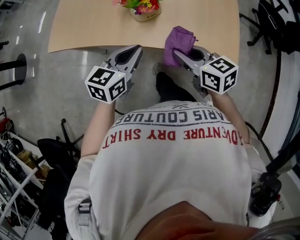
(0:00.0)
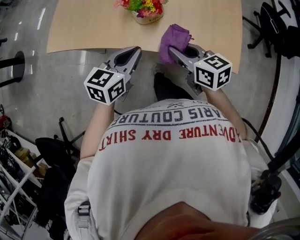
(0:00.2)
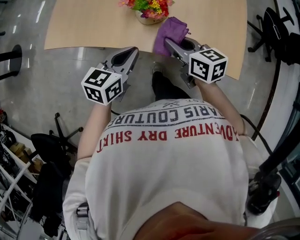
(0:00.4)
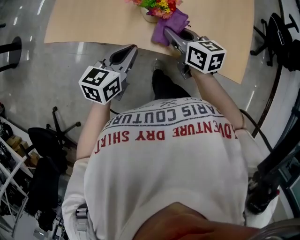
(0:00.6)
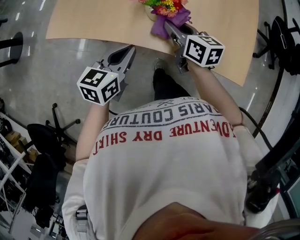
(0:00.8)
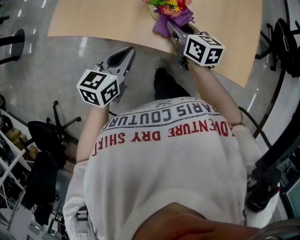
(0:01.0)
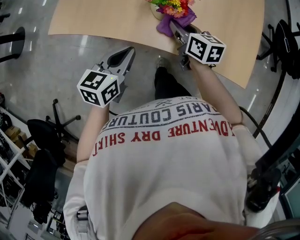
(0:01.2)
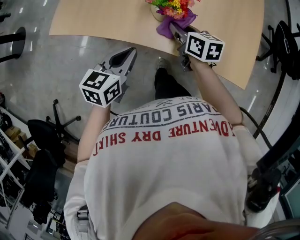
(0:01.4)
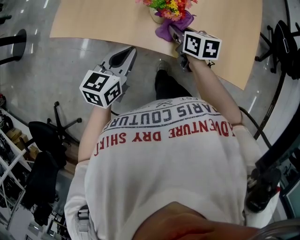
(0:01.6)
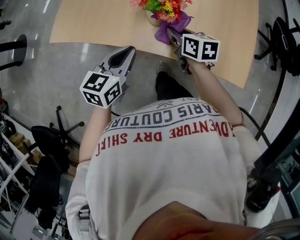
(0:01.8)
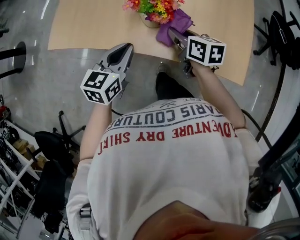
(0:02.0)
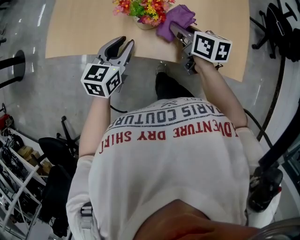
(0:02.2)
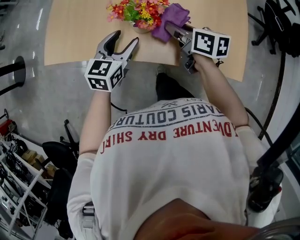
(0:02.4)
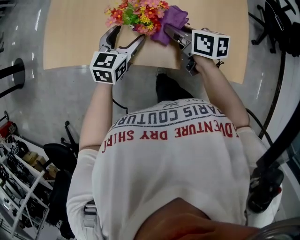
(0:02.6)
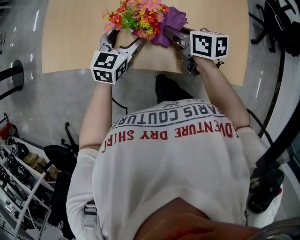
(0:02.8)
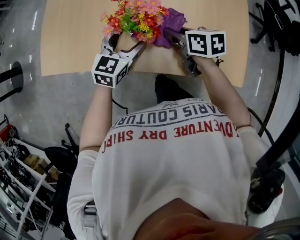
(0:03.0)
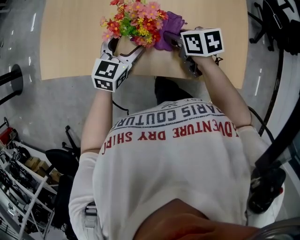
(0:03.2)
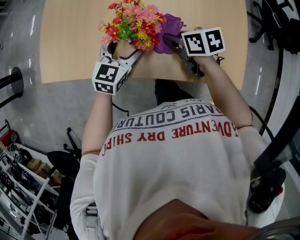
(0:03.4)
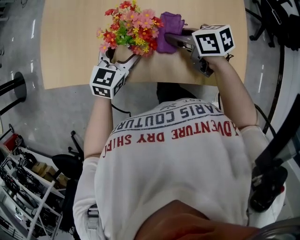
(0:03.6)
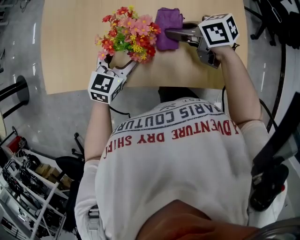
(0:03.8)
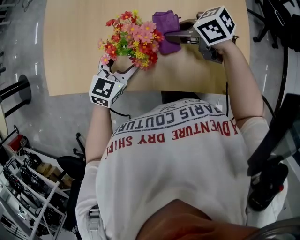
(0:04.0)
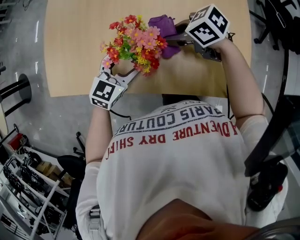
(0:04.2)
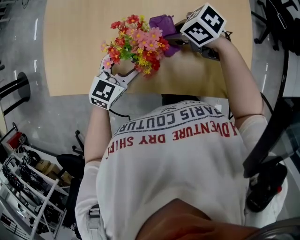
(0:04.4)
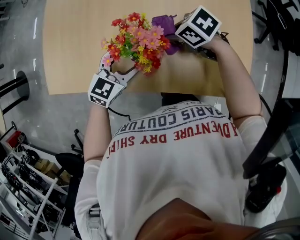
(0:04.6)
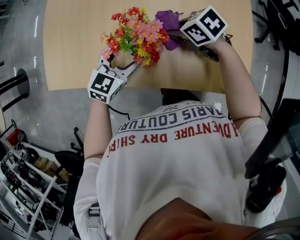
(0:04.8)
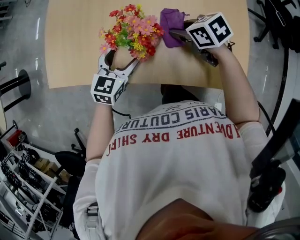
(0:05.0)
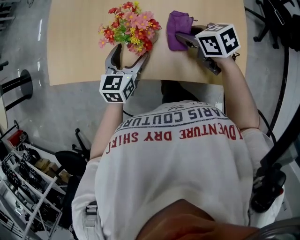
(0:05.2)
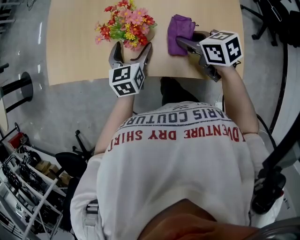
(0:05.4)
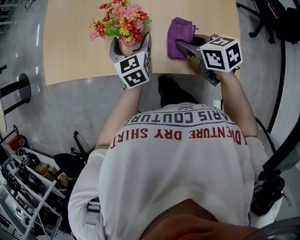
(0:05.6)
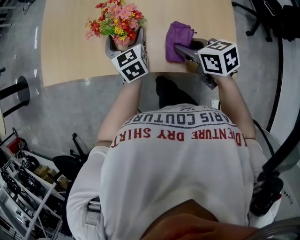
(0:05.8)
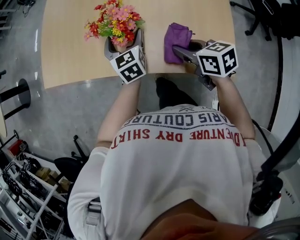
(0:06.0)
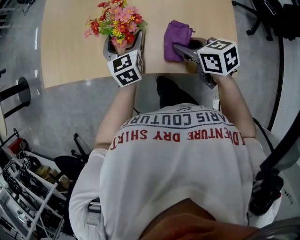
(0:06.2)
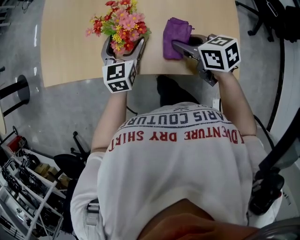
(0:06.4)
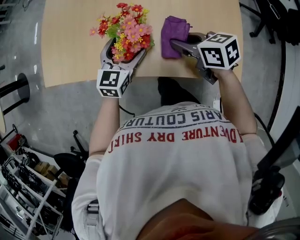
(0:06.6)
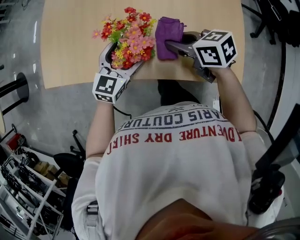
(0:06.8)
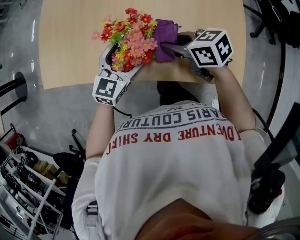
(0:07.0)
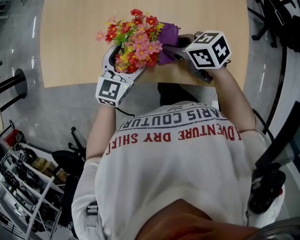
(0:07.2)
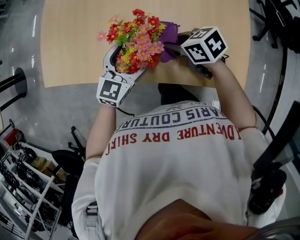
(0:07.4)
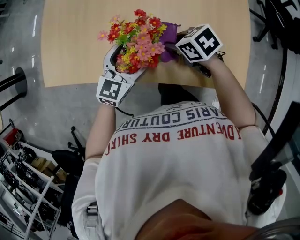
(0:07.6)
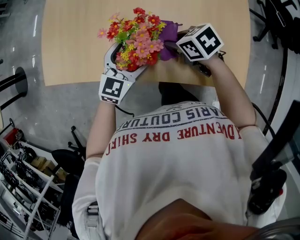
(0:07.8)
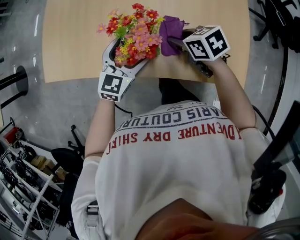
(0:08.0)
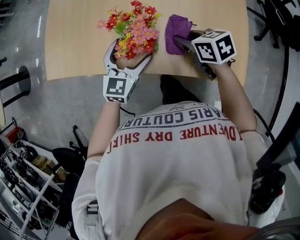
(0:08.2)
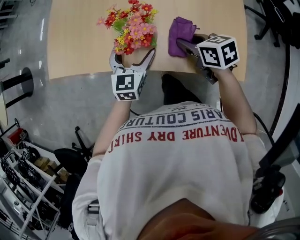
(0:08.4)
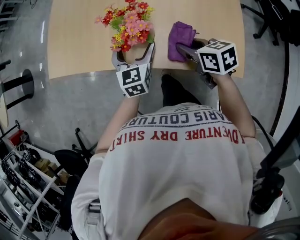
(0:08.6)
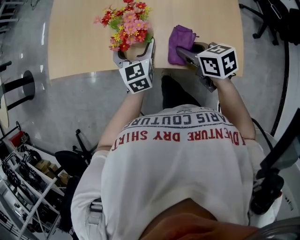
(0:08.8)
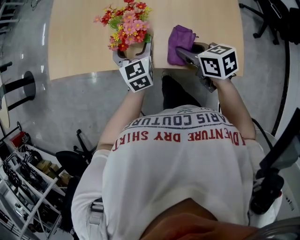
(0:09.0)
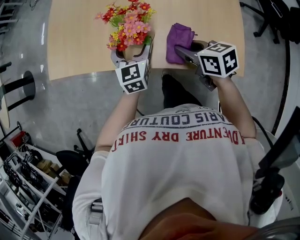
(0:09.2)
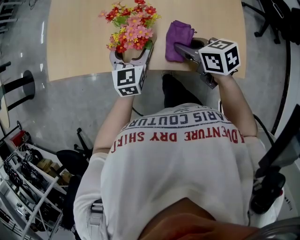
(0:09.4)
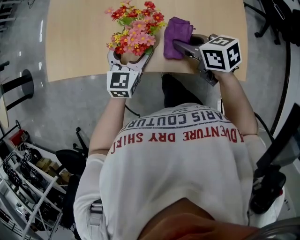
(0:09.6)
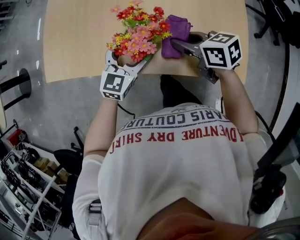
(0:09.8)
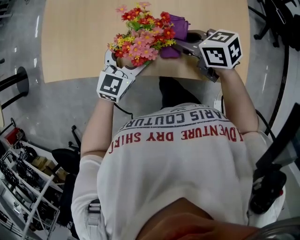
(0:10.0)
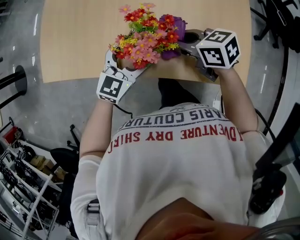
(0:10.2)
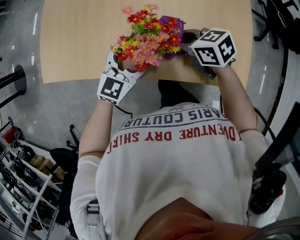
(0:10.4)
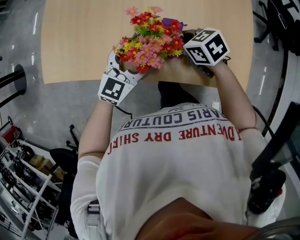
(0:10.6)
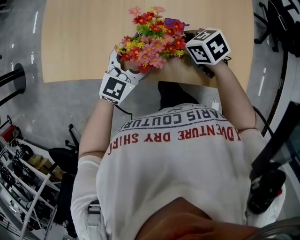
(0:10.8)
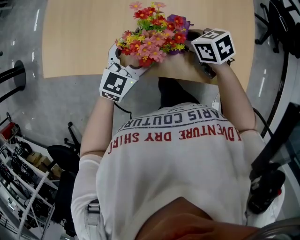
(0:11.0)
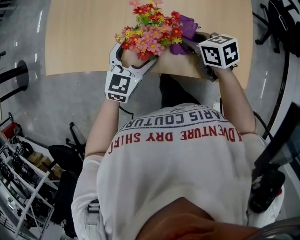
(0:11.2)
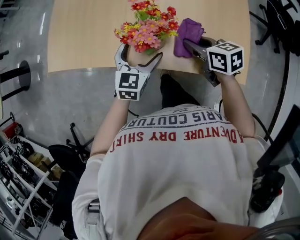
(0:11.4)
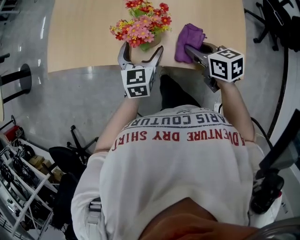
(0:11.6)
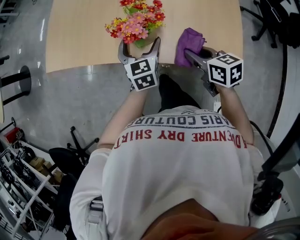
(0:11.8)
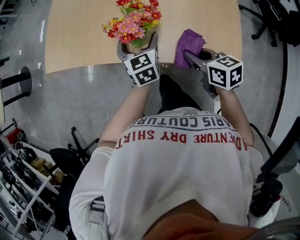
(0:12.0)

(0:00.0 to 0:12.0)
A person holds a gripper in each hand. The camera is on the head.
0:00.0 - 0:01.6: The right gripper travels forward and downward by roughly 20 cm, while the left gripper moves to the left, roughly 5 cm.
0:01.6 - 0:03.0: The left gripper moves forward and to the right, roughly 15 cm, and opens its fingers, while the right gripper heads to the right, covering roughly 5 cm.
0:03.0 - 0:04.4: The right gripper shifts by some 5 cm, and changes its angle by roughly 40 degrees.
0:04.4 - 0:06.0: The left gripper rotates roughly 50 degrees. Meanwhile the right gripper shifts by approximately 15 cm, and turns by roughly 30 degrees.
0:06.0 - 0:07.6: The left gripper changes its angle by some 40 degrees. The right gripper moves forward, downward and to the left, approximately 15 cm, and changes its angle by some 20 degrees.
0:07.6 - 0:09.0: The right gripper shifts about 10 cm backward, and rotates about 20 degrees, while the left gripper changes its angle by some 40 degrees.
0:09.0 - 0:10.4: The left gripper rotates roughly 40 degrees, while the right gripper moves forward, roughly 10 cm.
0:10.4 - 0:12.0: The right gripper travels backward and to the right by approximately 15 cm; the left gripper turns by roughly 50 degrees.

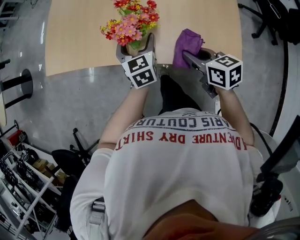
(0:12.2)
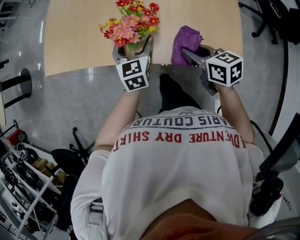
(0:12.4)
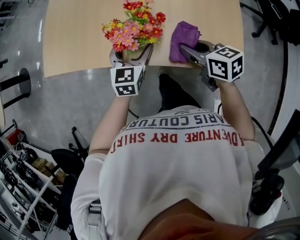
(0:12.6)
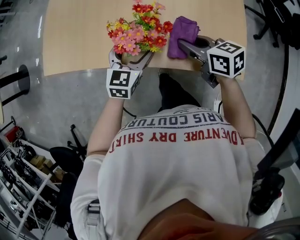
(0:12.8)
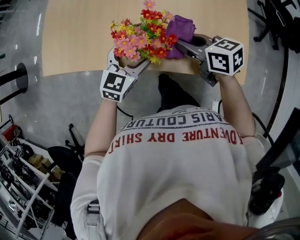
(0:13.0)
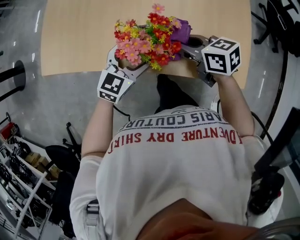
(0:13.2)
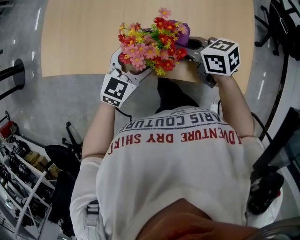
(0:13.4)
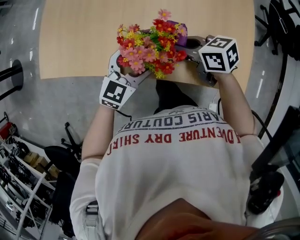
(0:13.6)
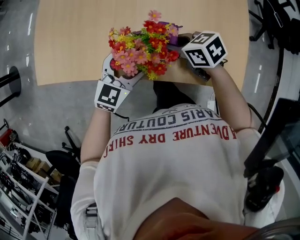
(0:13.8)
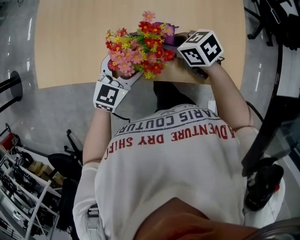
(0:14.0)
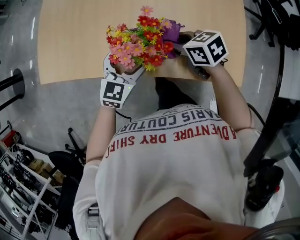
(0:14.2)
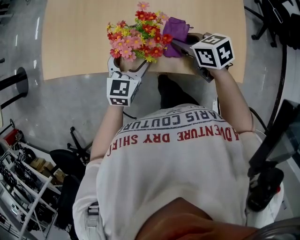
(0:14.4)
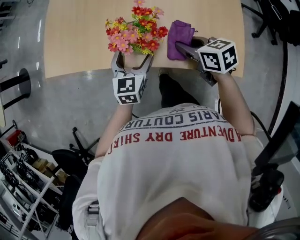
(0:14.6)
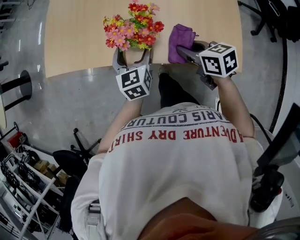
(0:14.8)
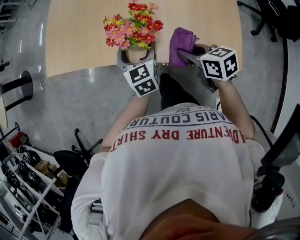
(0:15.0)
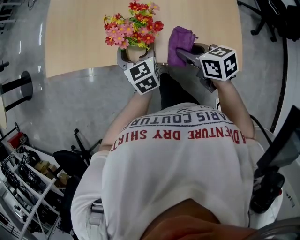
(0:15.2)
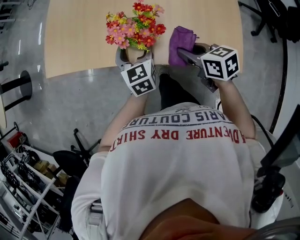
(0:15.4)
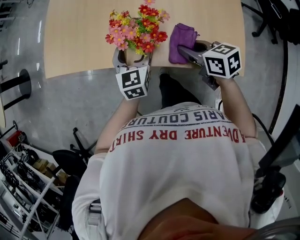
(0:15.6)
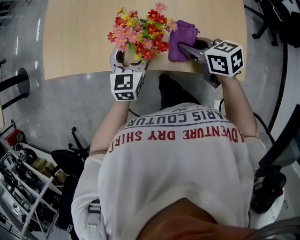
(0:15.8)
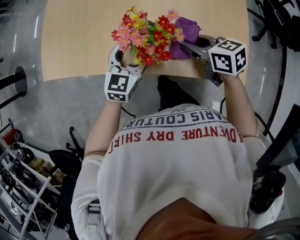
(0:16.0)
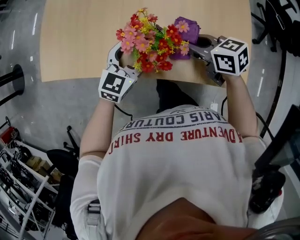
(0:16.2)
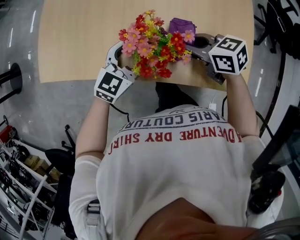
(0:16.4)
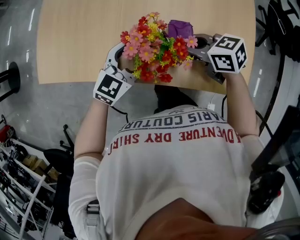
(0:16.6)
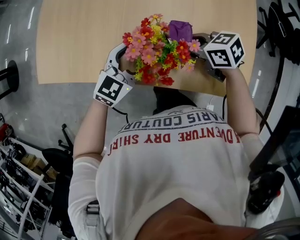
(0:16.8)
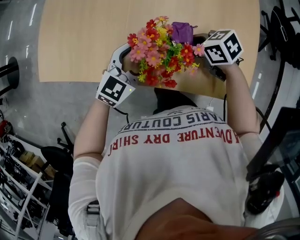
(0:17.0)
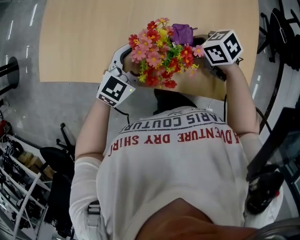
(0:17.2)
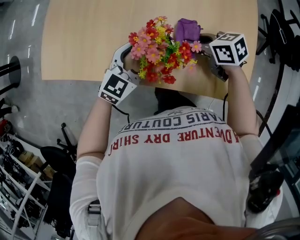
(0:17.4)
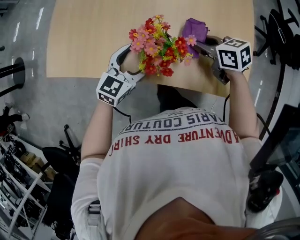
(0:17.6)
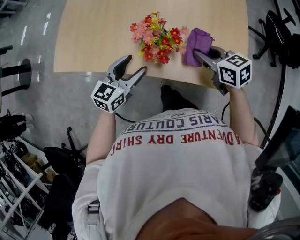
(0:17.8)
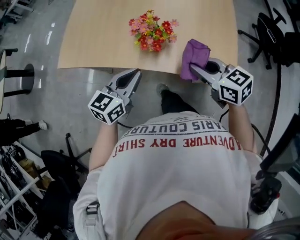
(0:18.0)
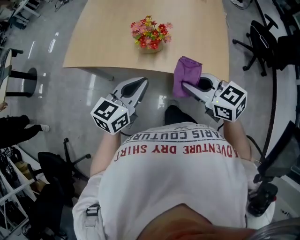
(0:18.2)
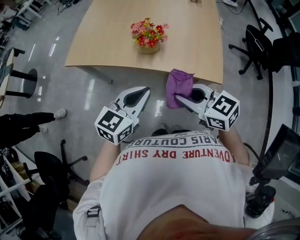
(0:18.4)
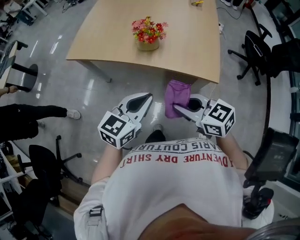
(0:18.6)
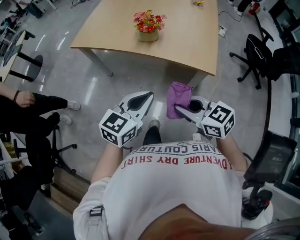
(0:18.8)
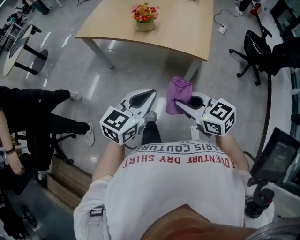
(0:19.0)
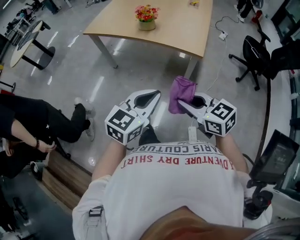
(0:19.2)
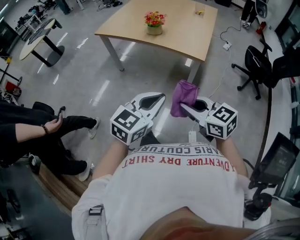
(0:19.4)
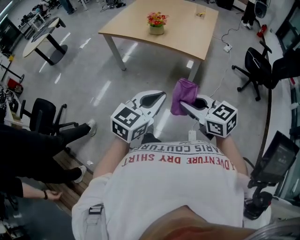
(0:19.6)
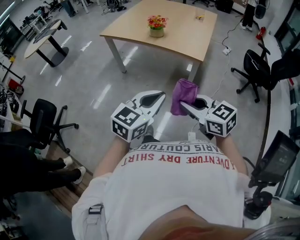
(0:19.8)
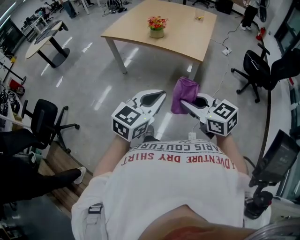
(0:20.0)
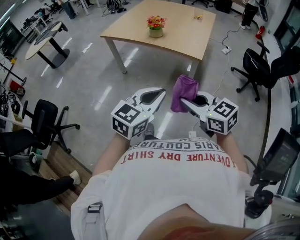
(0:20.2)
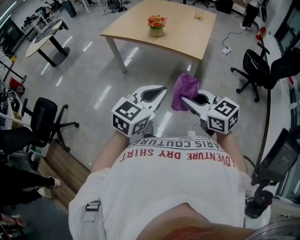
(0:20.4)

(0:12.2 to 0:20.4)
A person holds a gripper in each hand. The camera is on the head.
0:12.2 - 0:13.8: The left gripper rotates roughly 50 degrees; the right gripper travels forward and to the left by about 15 cm, and rotates roughly 20 degrees.
0:13.8 - 0:15.4: The right gripper is displaced backward by some 10 cm. The left gripper swivels some 40 degrees.
0:15.4 - 0:17.2: The right gripper shifts by approximately 15 cm, and rotates approximately 30 degrees; the left gripper changes its angle by approximately 50 degrees.
0:17.2 - 0:18.8: The two grippers travel together, about 50 cm. The right gripper changes its angle by about 30 degrees. Meanwhile the left gripper turns by some 20 degrees, and closes its fingers.
0:18.8 - 0:20.4: Both grippers move backward, about 35 cm.

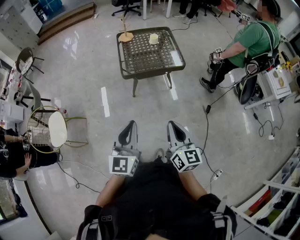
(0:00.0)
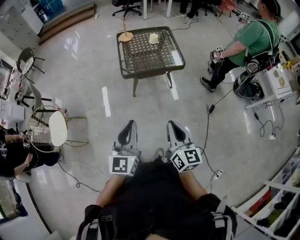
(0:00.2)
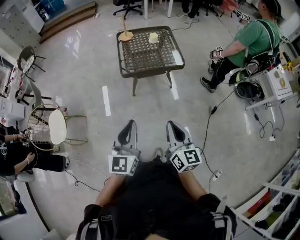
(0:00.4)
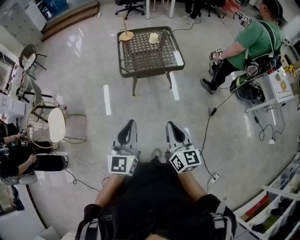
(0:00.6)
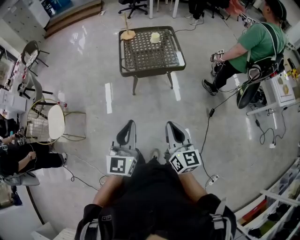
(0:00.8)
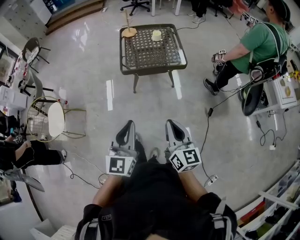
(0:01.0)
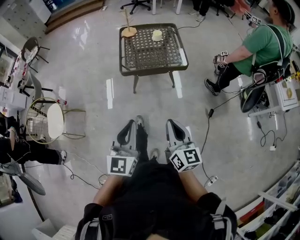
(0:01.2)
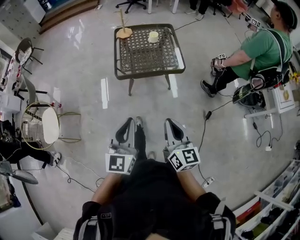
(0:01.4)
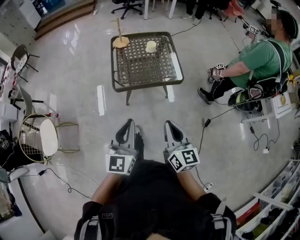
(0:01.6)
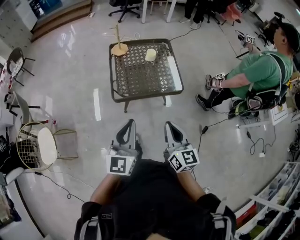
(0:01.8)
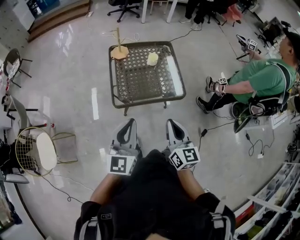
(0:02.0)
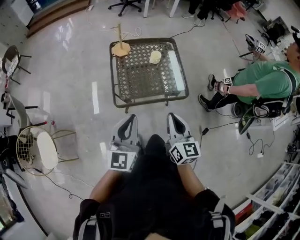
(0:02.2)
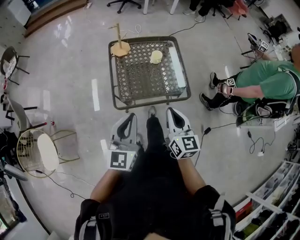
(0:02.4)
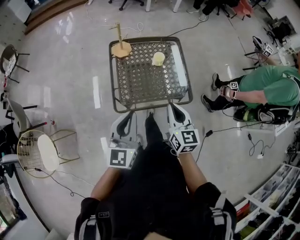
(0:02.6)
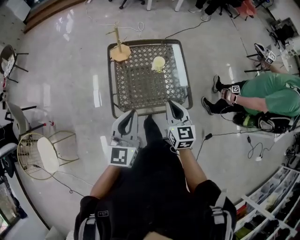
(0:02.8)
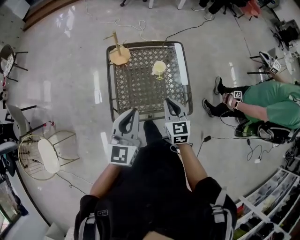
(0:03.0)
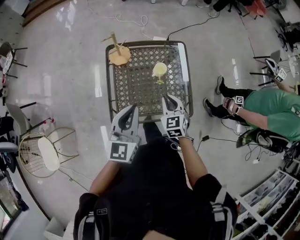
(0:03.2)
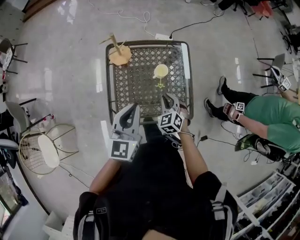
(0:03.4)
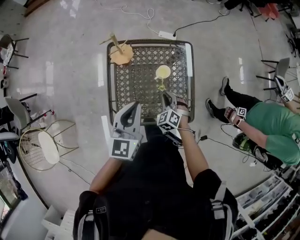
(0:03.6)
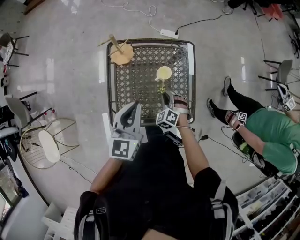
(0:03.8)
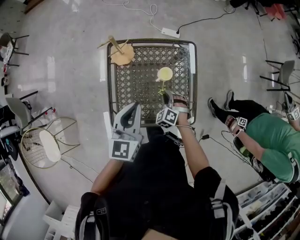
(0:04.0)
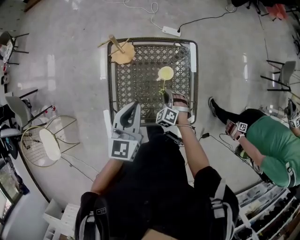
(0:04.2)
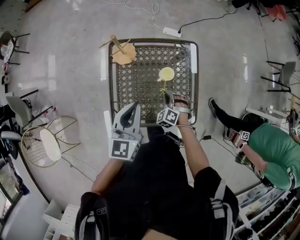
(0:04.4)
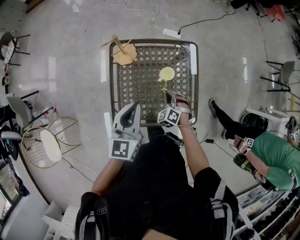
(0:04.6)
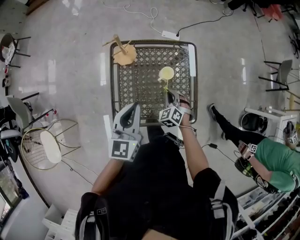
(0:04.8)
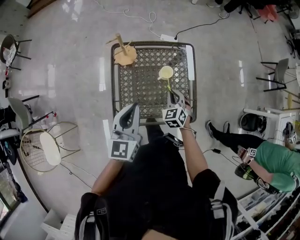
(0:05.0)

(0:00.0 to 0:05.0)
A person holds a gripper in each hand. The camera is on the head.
0:00.0 - 0:01.6: Both grippers travel together forward, roughly 20 cm.
0:01.6 - 0:03.4: Both grippers are carried forward, approximately 60 cm. The right gripper angles its fingers downward, by roughly 40 degrees.
0:03.4 - 0:05.0: The right gripper reaches about 10 cm downward, then returns.
